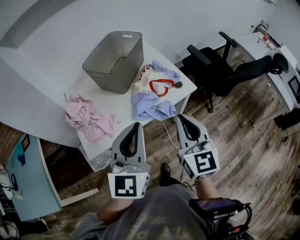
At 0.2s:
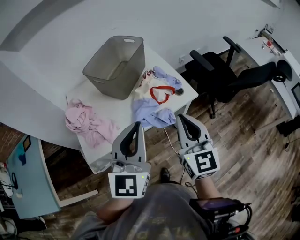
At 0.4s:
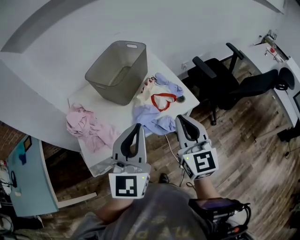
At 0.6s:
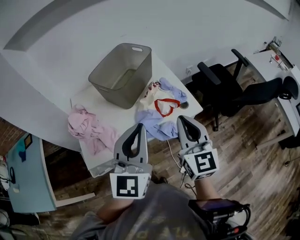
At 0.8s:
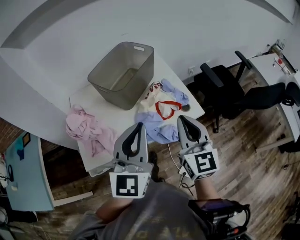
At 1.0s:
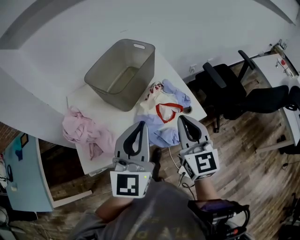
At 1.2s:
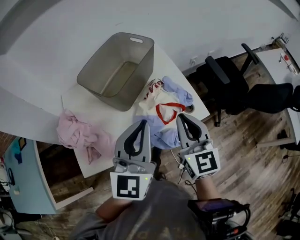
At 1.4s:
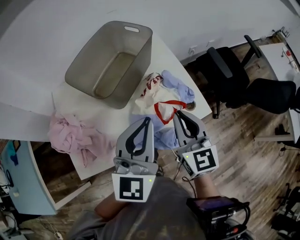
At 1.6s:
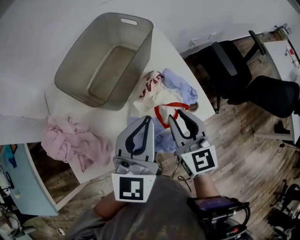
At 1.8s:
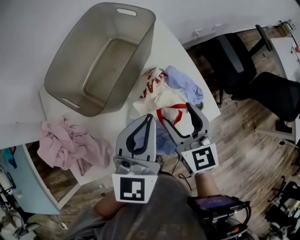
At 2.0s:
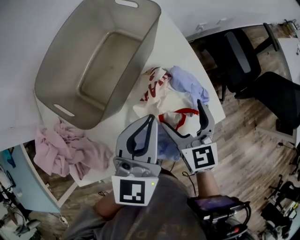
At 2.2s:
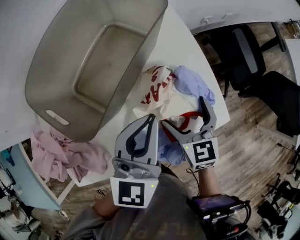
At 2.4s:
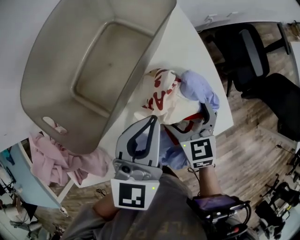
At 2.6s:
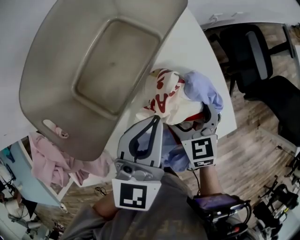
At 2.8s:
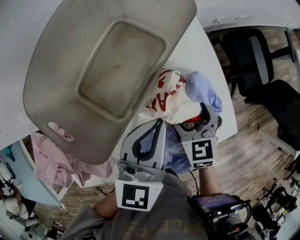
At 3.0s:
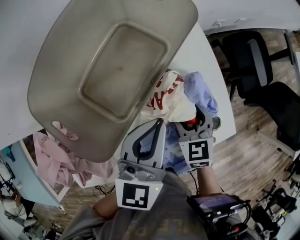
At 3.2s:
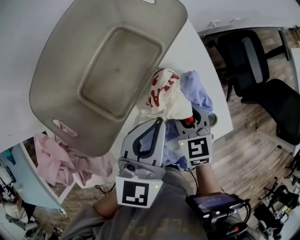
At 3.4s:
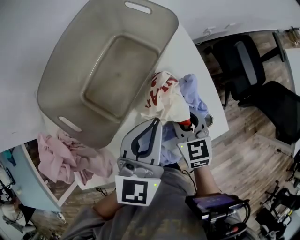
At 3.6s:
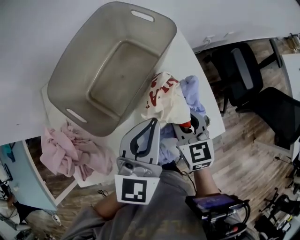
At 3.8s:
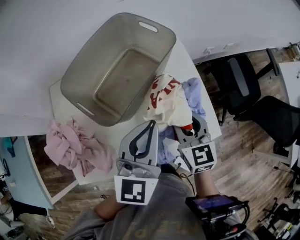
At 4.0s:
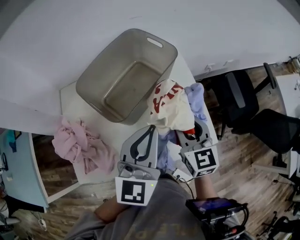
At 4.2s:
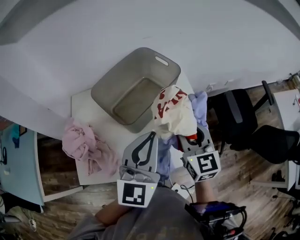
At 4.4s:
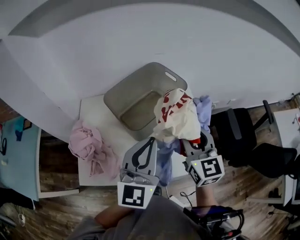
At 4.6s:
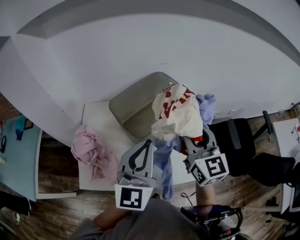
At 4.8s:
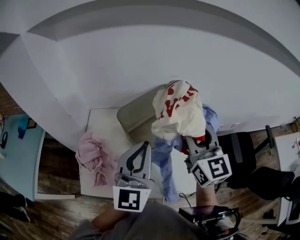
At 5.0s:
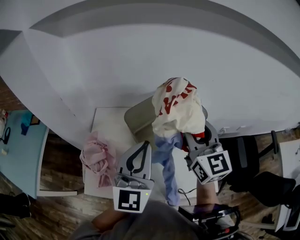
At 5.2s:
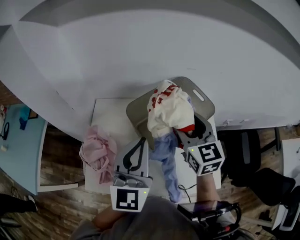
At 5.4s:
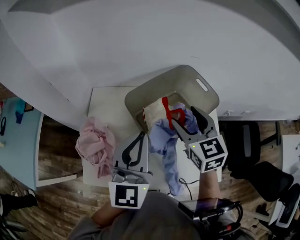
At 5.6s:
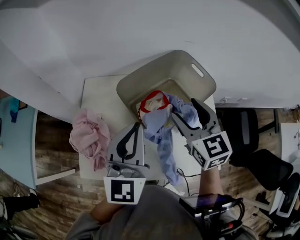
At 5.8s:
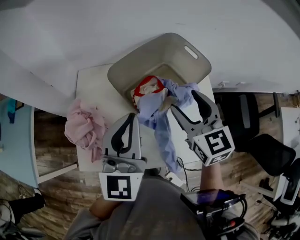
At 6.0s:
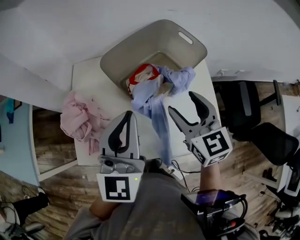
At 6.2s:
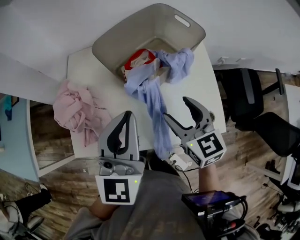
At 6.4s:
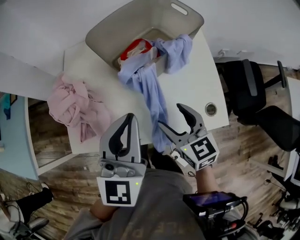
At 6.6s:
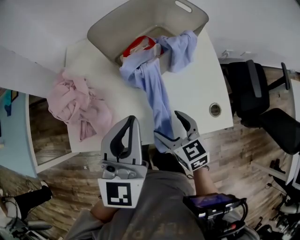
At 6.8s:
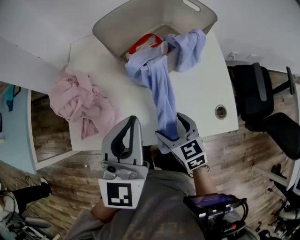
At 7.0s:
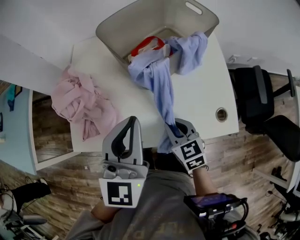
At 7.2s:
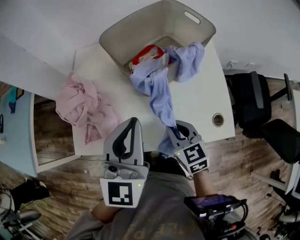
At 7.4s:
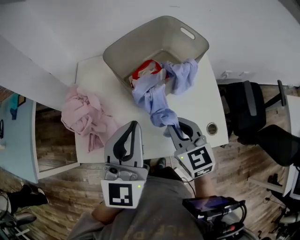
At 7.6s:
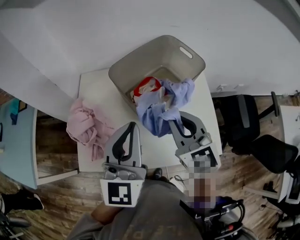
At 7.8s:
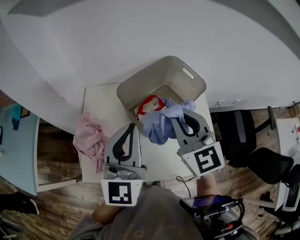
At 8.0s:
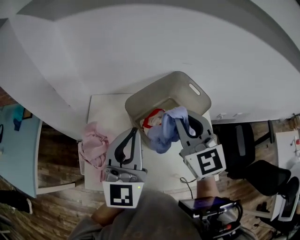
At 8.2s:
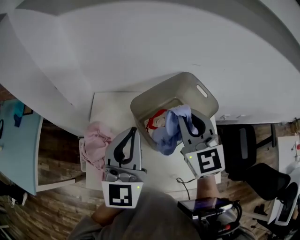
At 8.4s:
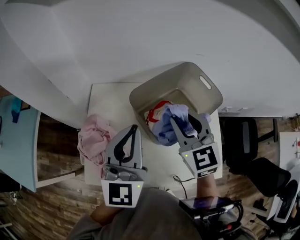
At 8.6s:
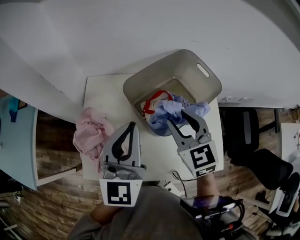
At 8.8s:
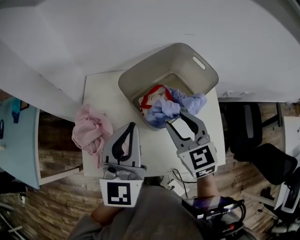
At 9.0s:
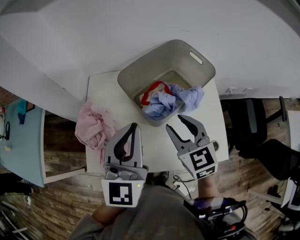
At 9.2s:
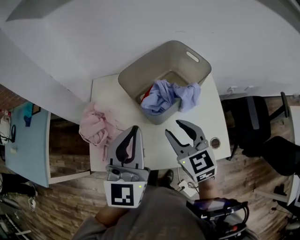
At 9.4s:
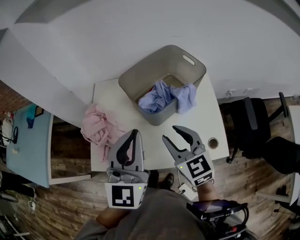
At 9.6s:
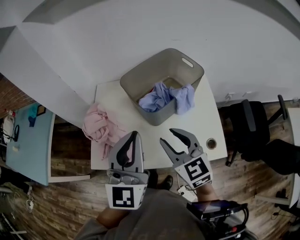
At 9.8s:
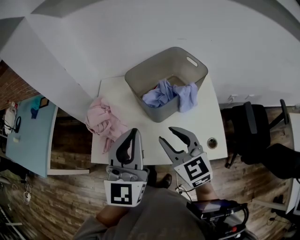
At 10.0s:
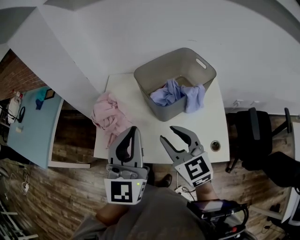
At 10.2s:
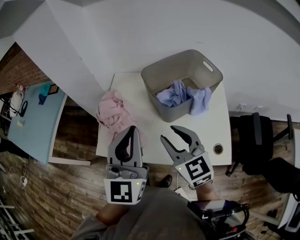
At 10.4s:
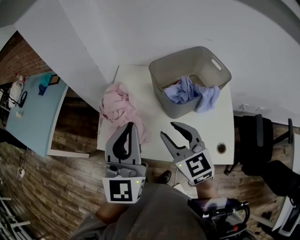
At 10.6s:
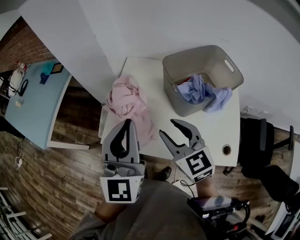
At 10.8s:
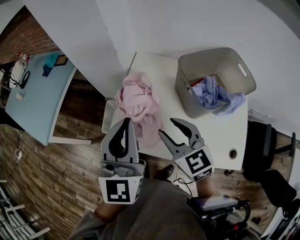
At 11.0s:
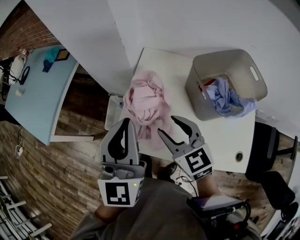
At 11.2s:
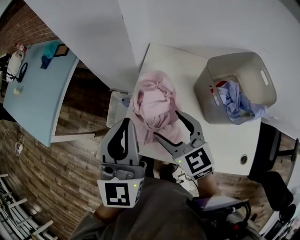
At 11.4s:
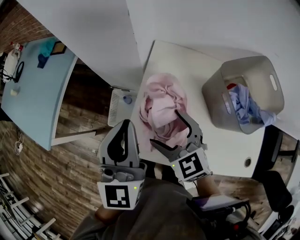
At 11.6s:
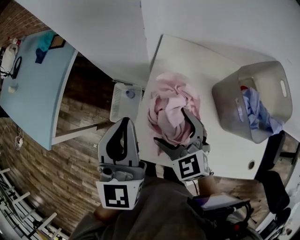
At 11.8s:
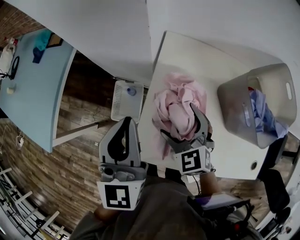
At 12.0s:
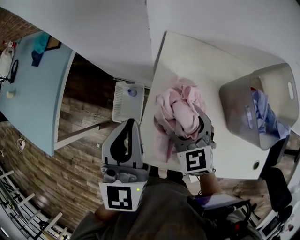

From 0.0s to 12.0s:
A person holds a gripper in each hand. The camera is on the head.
From 0.0s to 1.6s: The left gripper travels forward by approximately 25 cm. The right gripper goes approximately 30 cm forward and downward.
From 1.6s to 3.0s: The grippers both shift downward and forward by roughly 15 cm. The right gripper rotates approximately 30 degrees, and opens, then closes once more.
From 3.0s to 4.4s: The right gripper goes up and down, roughly 20 cm each way, reversing 2 times, and turns by some 30 degrees. Meanwhile the left gripper shifts roughly 15 cm downward, and swivels some 20 degrees.
From 4.4s to 6.0s: The left gripper is displaced to the left by some 10 cm; the right gripper is displaced to the left and downward by some 10 cm.
From 6.0s to 7.6s: The left gripper reaches some 10 cm downward, then returns. The right gripper goes downward and returns, roughly 20 cm each way, and closes.
From 7.6s to 9.0s: The left gripper travels forward and back again, about 10 cm each way. Meanwhile the right gripper moves approximately 10 cm upward and comes back.
From 9.0s to 10.4s: The grippers both shift to the left and backward by roughly 10 cm.
From 10.4s to 12.0s: The left gripper shifts roughly 30 cm forward, to the left and downward; the right gripper heads forward, downward and to the left, covering some 30 cm, and opens.

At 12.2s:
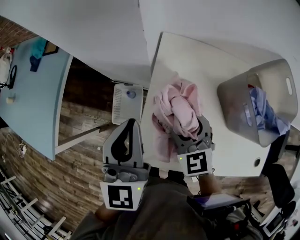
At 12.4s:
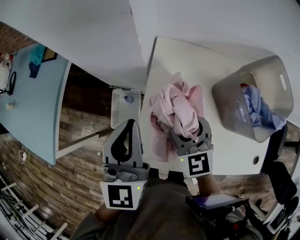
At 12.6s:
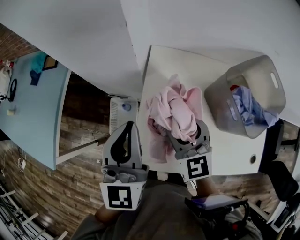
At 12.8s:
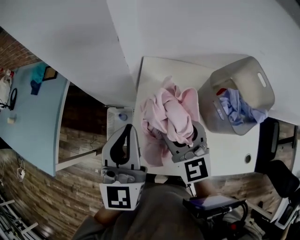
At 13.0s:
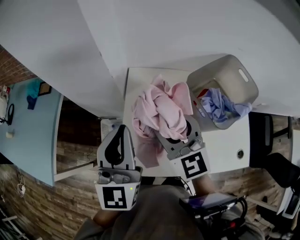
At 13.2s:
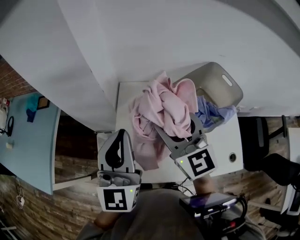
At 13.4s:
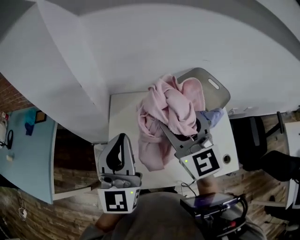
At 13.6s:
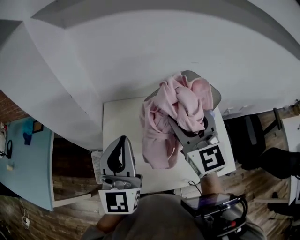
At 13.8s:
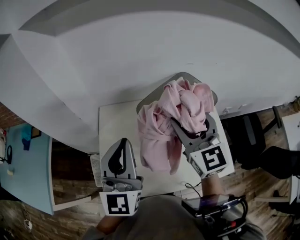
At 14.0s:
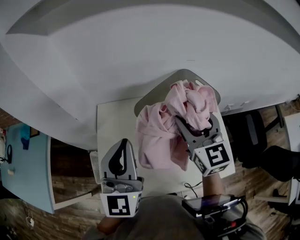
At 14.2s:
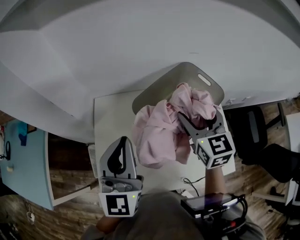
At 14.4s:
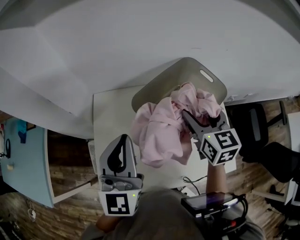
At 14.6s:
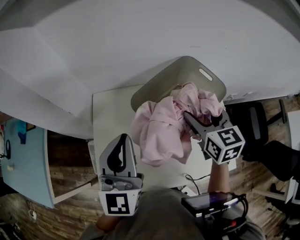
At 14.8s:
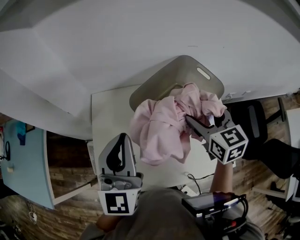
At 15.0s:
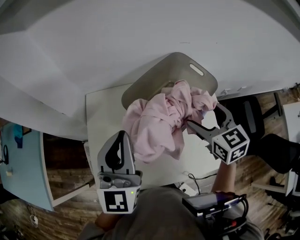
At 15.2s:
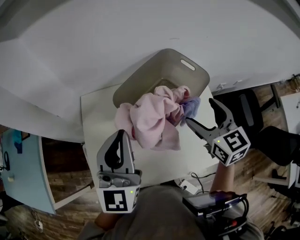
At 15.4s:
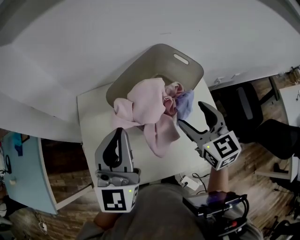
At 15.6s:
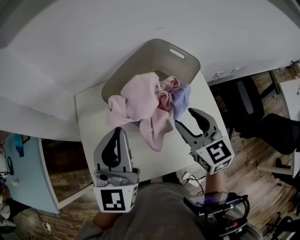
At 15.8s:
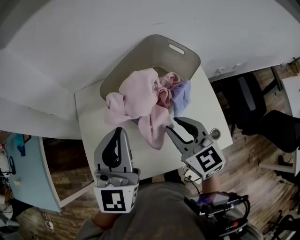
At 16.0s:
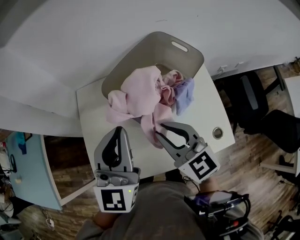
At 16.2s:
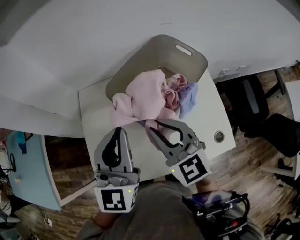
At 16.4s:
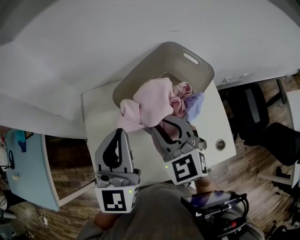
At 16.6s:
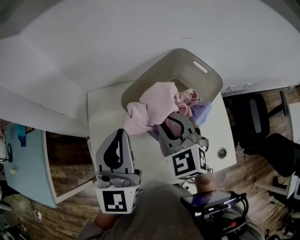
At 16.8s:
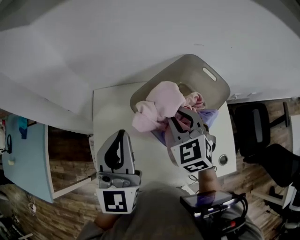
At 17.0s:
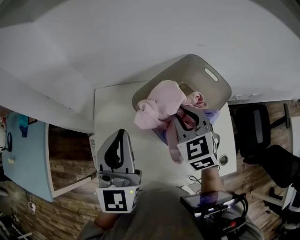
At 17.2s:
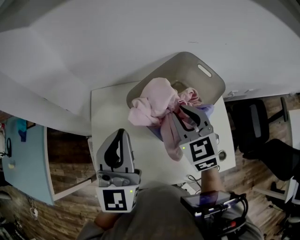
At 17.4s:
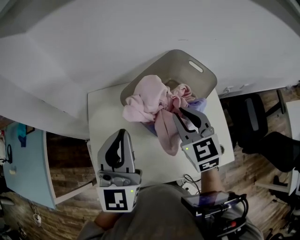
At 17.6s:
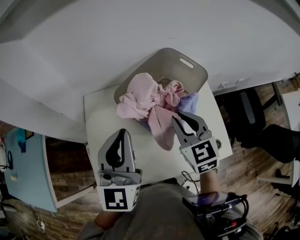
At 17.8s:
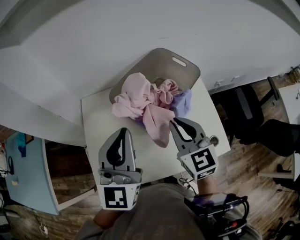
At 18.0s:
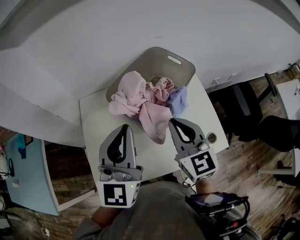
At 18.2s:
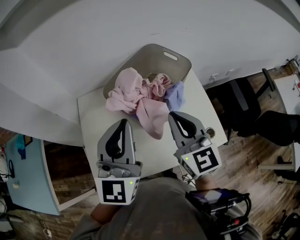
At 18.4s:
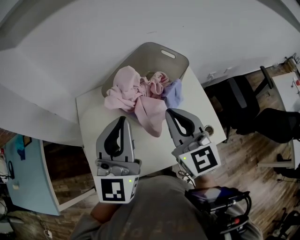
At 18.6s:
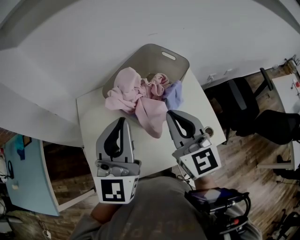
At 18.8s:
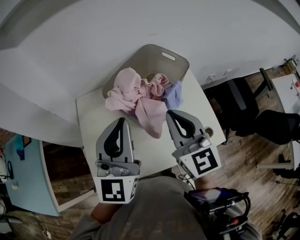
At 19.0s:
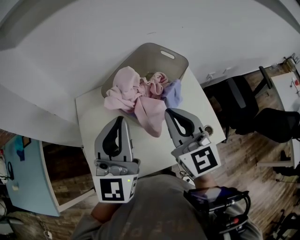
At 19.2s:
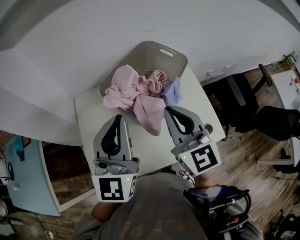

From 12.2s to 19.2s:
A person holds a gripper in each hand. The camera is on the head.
From 12.2s to 13.6s: The right gripper shifts about 35 cm upward and to the right, and changes its angle by approximately 30 degrees. Meanwhile the left gripper shifts some 25 cm to the right and upward, and changes its angle by about 30 degrees.
From 13.6s to 15.0s: The right gripper is displaced to the right and downward by about 20 cm, and changes its angle by some 30 degrees. The left gripper travels to the right and forward by some 10 cm.
From 15.0s to 16.4s: The right gripper moves to the left, some 15 cm, rotates about 20 degrees, and closes up.
From 16.4s to 17.8s: The right gripper goes approximately 5 cm to the right, and rotates roughly 20 degrees.
From 17.8s to 19.2s: The right gripper shifts approximately 5 cm upward.

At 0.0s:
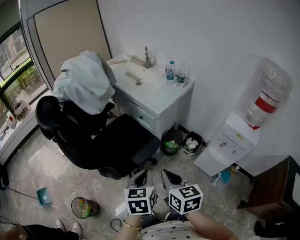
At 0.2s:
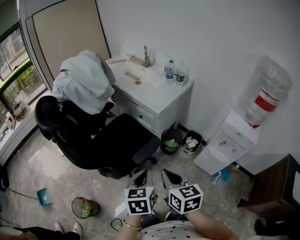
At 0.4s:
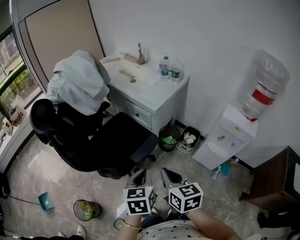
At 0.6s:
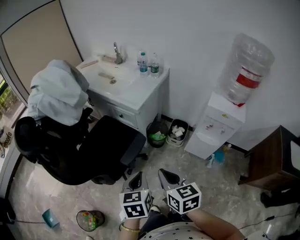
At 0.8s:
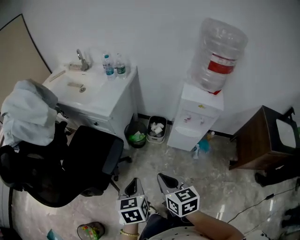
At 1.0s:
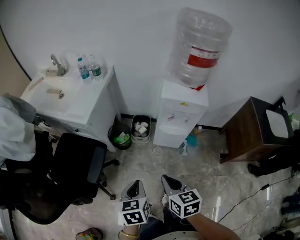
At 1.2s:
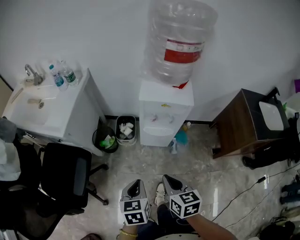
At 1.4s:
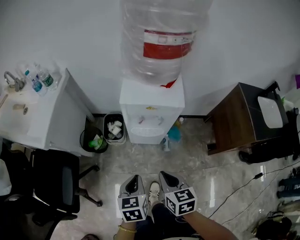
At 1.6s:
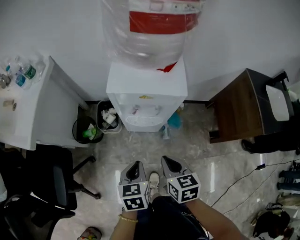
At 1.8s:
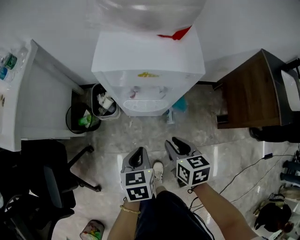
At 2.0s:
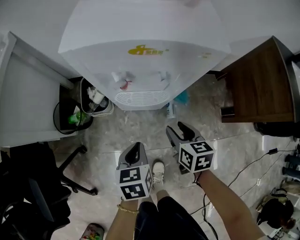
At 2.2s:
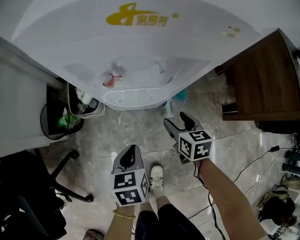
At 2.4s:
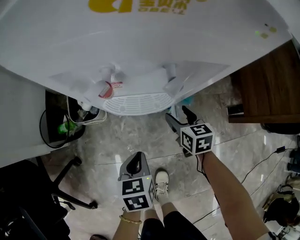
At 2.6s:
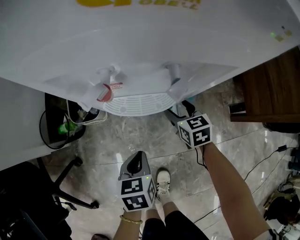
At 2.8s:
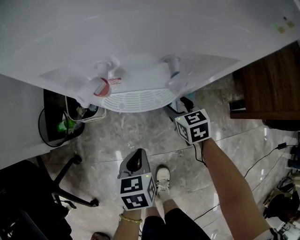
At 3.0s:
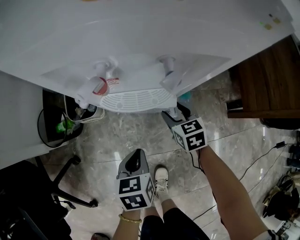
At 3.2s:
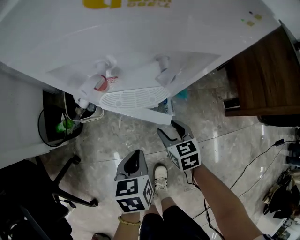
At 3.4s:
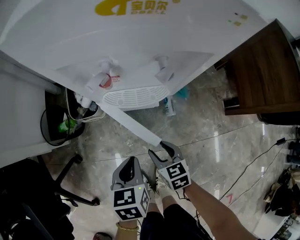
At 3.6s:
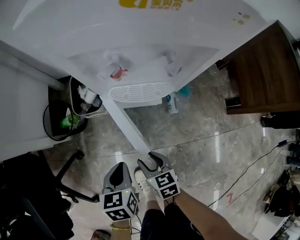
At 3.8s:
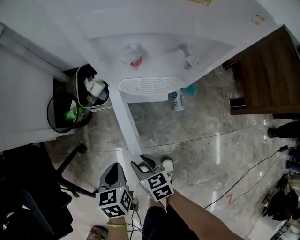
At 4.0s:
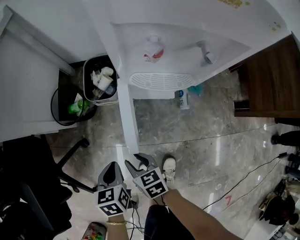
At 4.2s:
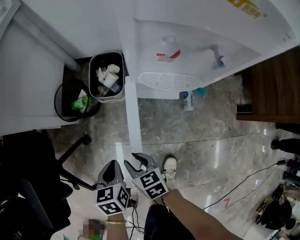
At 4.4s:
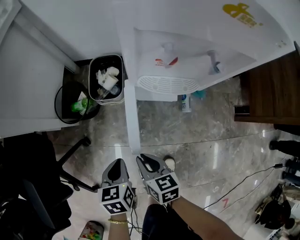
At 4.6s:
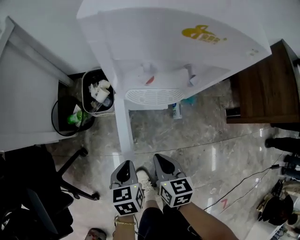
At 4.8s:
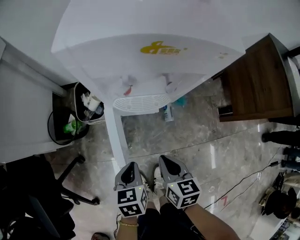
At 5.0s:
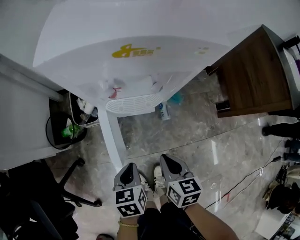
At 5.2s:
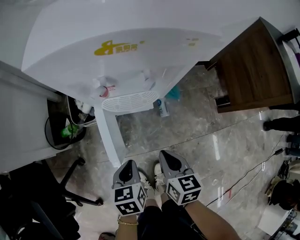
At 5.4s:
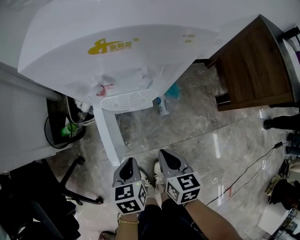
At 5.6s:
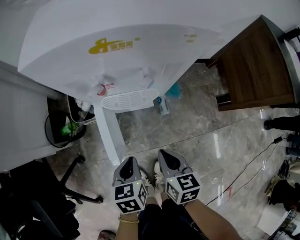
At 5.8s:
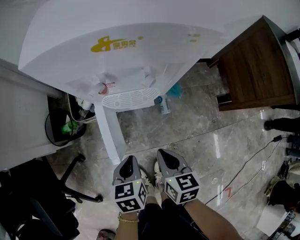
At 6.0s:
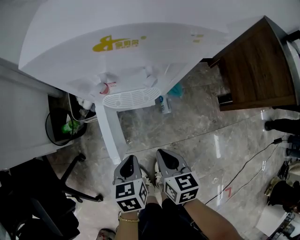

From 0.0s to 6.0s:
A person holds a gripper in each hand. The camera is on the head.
From 0.0s to 1.6s: The pair of grippers is taken some 40 cm. The left gripper rotates some 40 degrees. The right gripper swivels about 50 degrees.
From 1.6s to 3.0s: The left gripper moves downward, approximately 30 cm. The right gripper moves downward and forward, some 40 cm, and opens its fingers.
From 3.0s to 4.4s: The right gripper ends up about 35 cm from where it was, swivels approximately 20 degrees, and closes. Meanwhile the left gripper changes place by roughly 20 cm.
From 4.4s to 6.0s: The right gripper travels to the right and upward by about 20 cm. Meanwhile the left gripper goes approximately 15 cm to the right.
